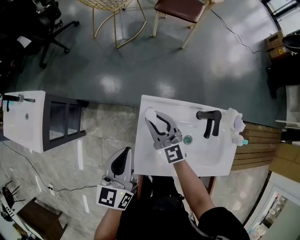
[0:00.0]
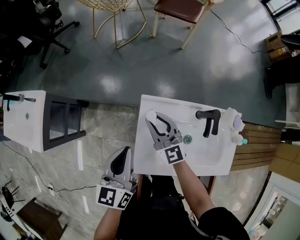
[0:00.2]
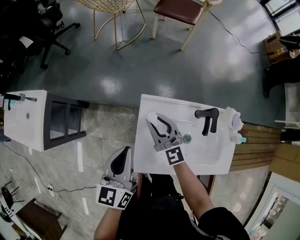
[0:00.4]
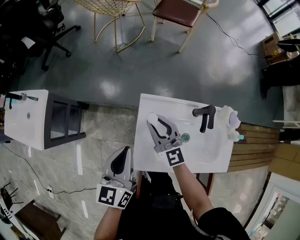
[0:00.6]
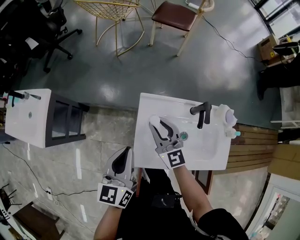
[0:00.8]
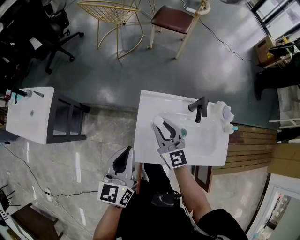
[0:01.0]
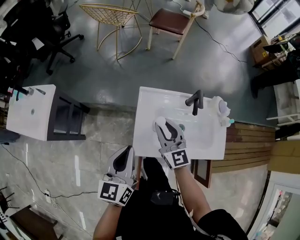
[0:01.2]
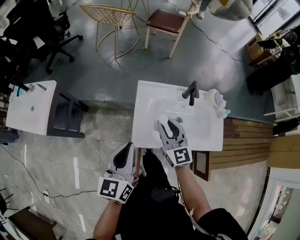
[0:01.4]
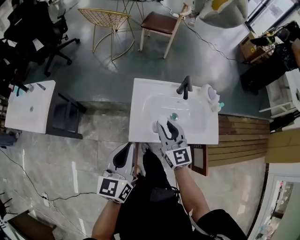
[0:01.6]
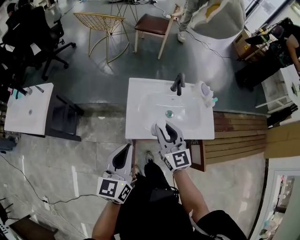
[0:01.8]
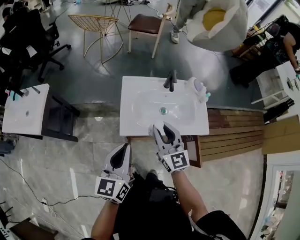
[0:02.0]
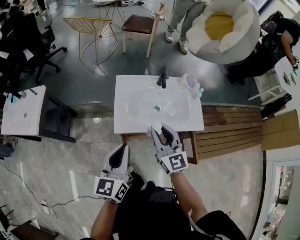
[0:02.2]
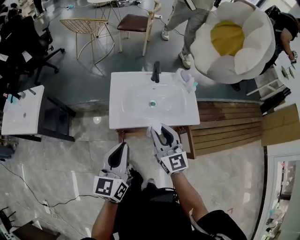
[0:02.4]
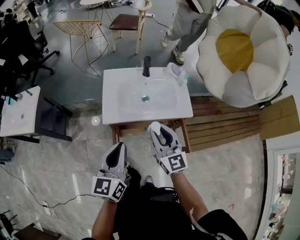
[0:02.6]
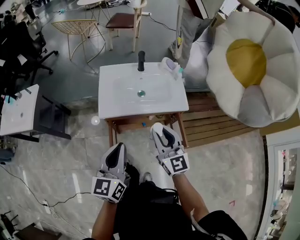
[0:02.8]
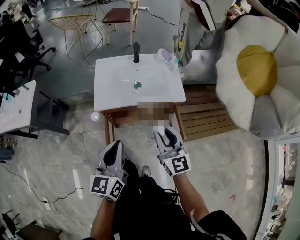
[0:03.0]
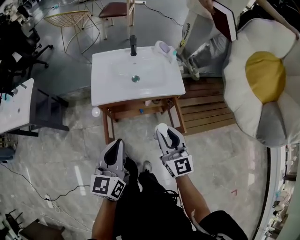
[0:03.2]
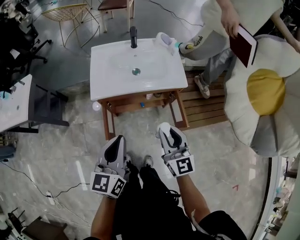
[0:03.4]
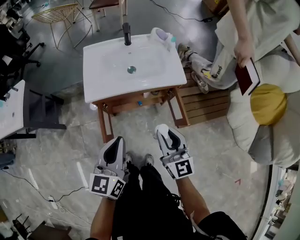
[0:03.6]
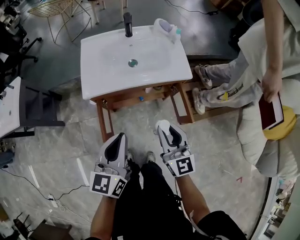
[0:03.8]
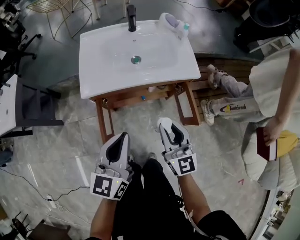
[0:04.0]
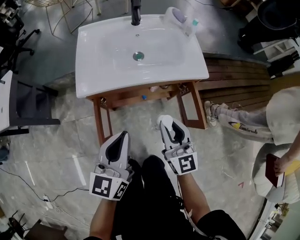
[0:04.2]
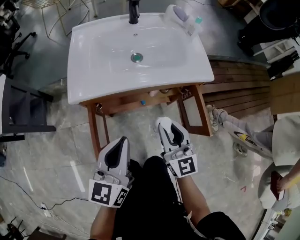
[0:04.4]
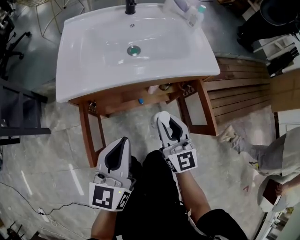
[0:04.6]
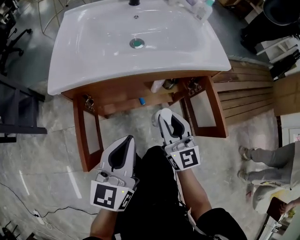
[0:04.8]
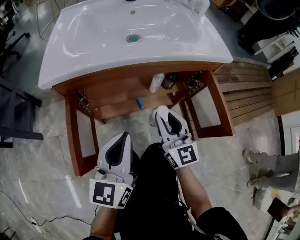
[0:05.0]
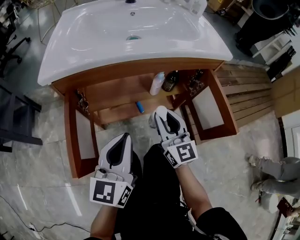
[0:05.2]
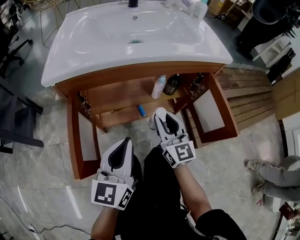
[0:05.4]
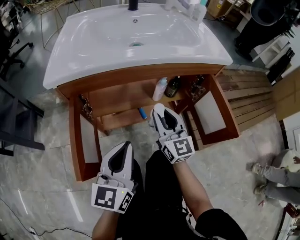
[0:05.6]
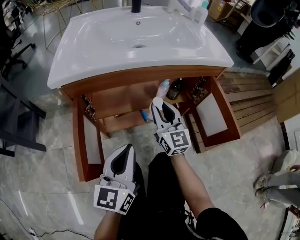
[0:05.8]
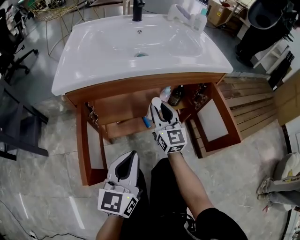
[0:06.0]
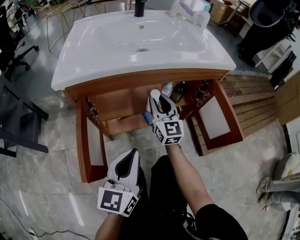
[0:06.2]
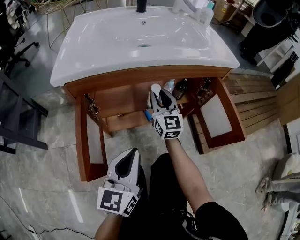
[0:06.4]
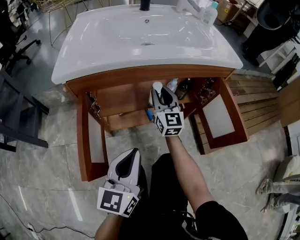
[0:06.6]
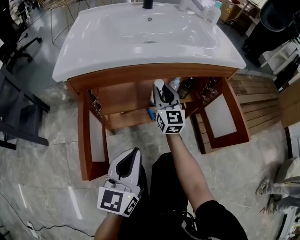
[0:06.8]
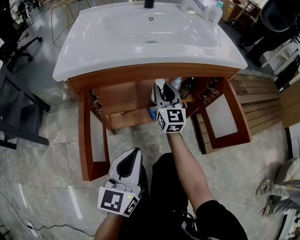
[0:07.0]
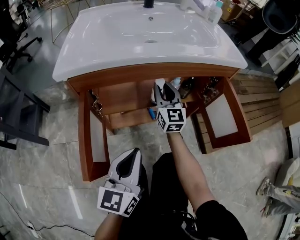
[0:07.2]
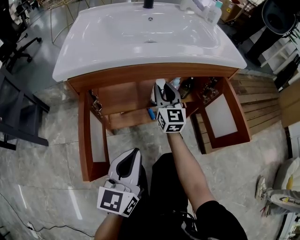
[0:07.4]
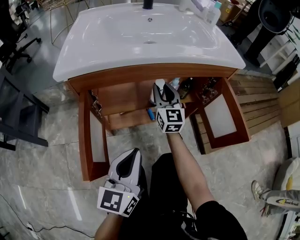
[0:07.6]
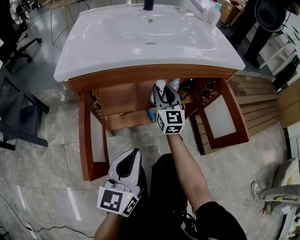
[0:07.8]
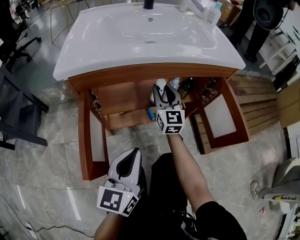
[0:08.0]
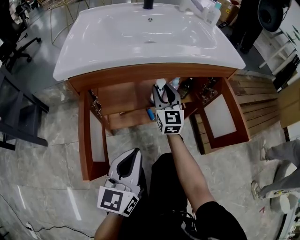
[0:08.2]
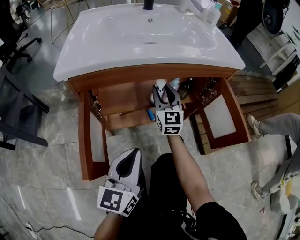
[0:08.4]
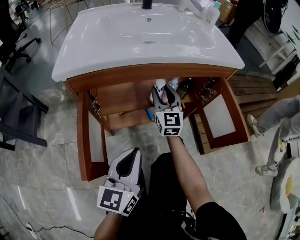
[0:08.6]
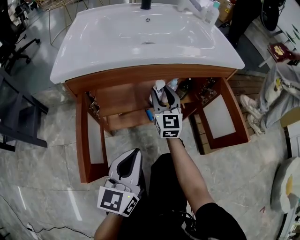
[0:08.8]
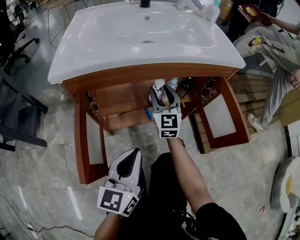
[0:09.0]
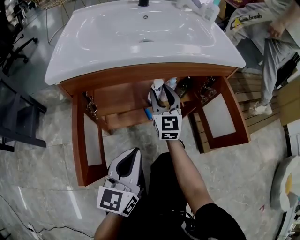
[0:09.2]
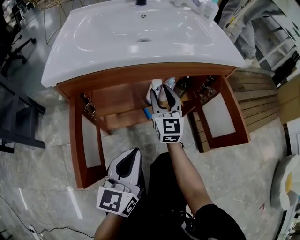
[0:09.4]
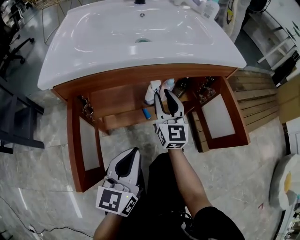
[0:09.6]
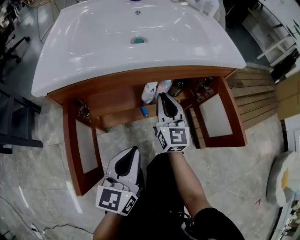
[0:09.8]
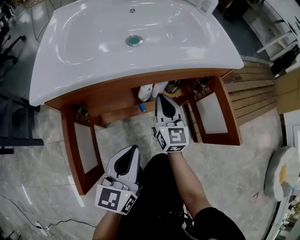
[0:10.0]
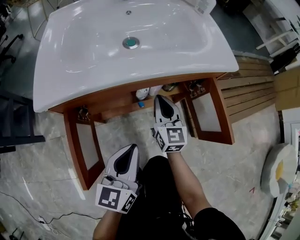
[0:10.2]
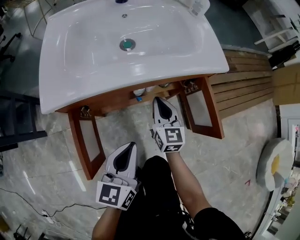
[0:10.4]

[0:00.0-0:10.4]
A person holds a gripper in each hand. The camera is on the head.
0:00.0 to 0:01.4: Both grippers travel together backward and upward, approximately 20 cm.
0:01.4 to 0:03.0: Both grippers move backward and to the right, about 35 cm.
0:03.0 to 0:04.4: The two grippers go about 25 cm downward.
0:04.4 to 0:06.0: The left gripper moves downward, roughly 20 cm. Meanwhile the right gripper shifts roughly 25 cm downward and forward.
0:06.0 to 0:07.4: The right gripper shifts about 5 cm forward.
0:07.4 to 0:09.0: The grippers make only small movements.
0:09.0 to 0:10.4: The right gripper travels to the right and backward by approximately 10 cm, changes its angle by approximately 20 degrees, and closes up. The left gripper travels upward by about 10 cm.

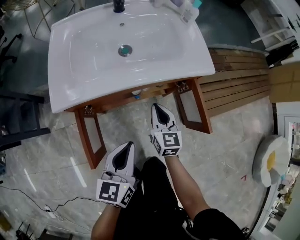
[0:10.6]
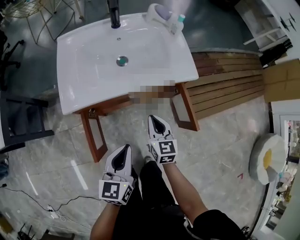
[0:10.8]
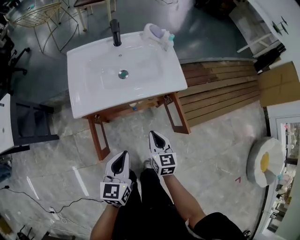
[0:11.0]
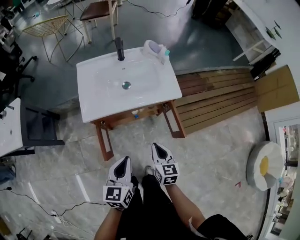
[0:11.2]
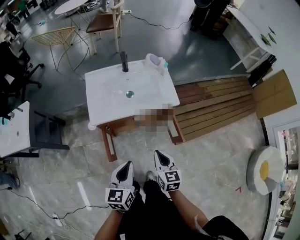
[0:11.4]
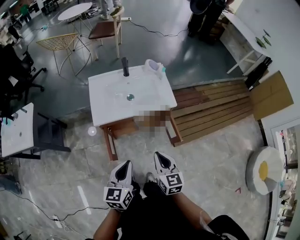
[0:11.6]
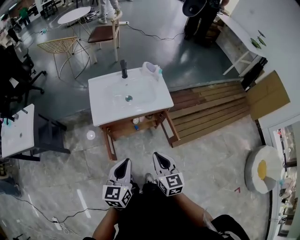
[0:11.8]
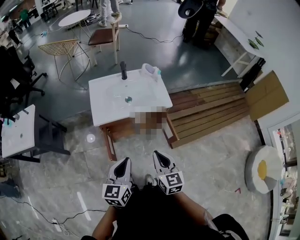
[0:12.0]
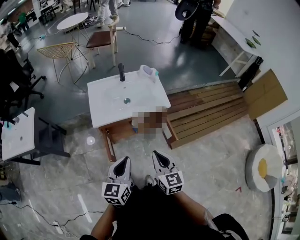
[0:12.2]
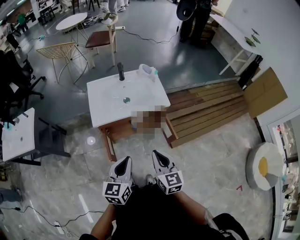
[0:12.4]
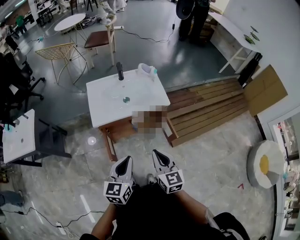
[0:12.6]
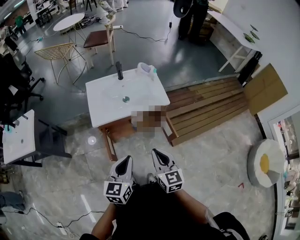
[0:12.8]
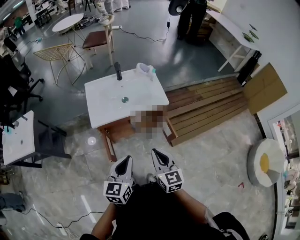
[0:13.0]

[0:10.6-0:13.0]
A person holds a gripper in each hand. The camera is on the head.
0:10.6 to 0:11.8: Both grippers travel together upward and backward, some 40 cm.
0:11.8 to 0:13.0: The grippers stay close to where they were, moving slightly.

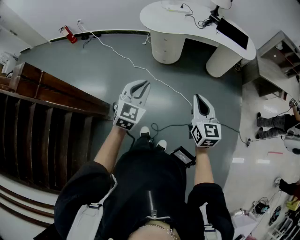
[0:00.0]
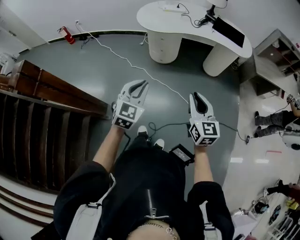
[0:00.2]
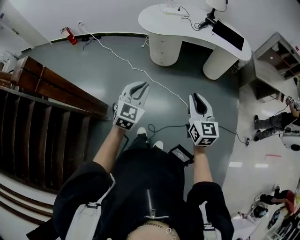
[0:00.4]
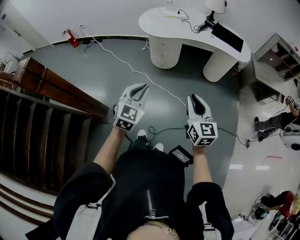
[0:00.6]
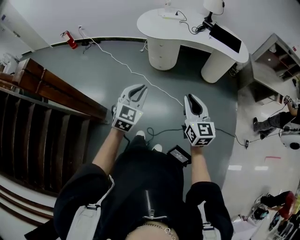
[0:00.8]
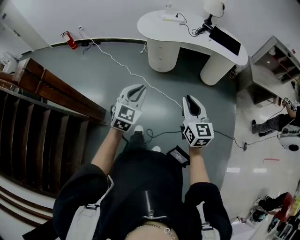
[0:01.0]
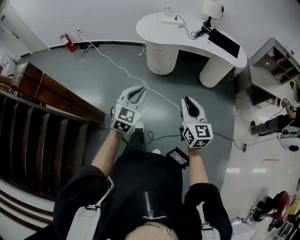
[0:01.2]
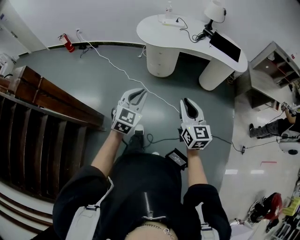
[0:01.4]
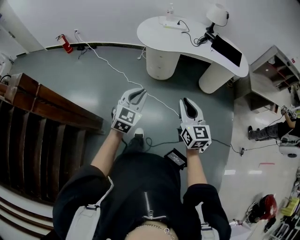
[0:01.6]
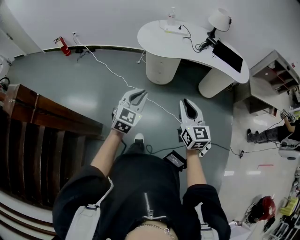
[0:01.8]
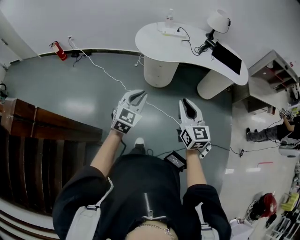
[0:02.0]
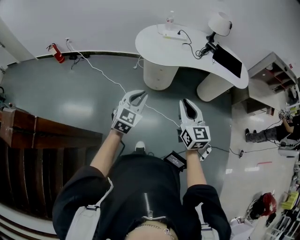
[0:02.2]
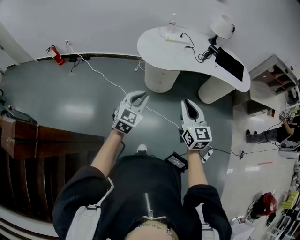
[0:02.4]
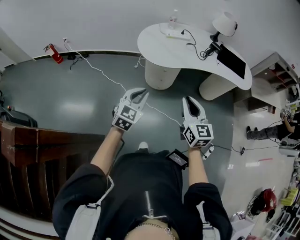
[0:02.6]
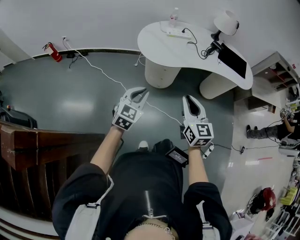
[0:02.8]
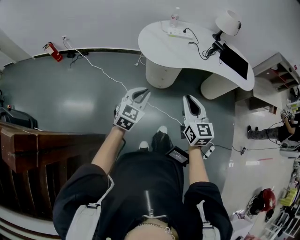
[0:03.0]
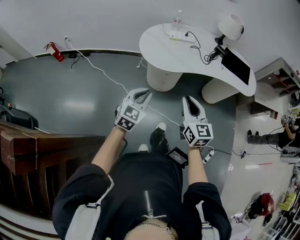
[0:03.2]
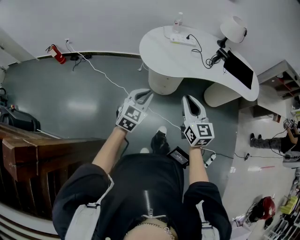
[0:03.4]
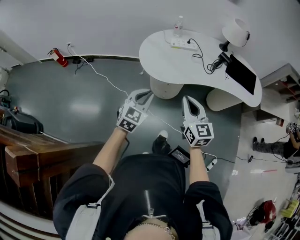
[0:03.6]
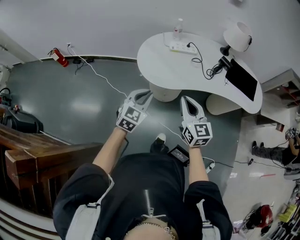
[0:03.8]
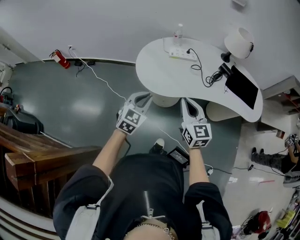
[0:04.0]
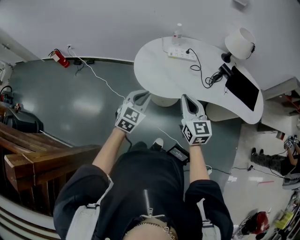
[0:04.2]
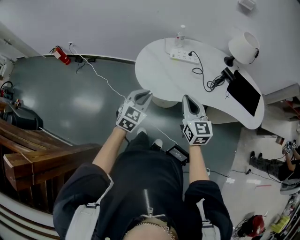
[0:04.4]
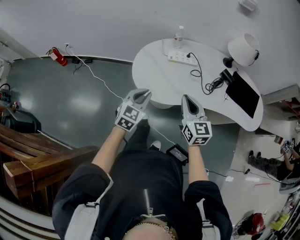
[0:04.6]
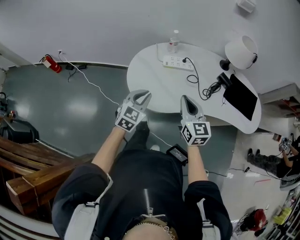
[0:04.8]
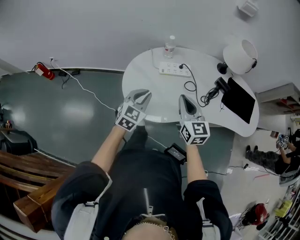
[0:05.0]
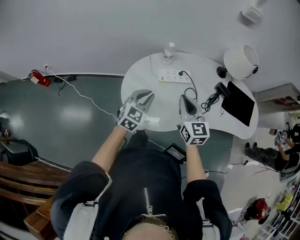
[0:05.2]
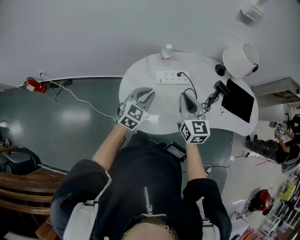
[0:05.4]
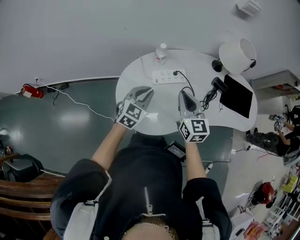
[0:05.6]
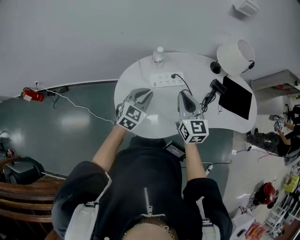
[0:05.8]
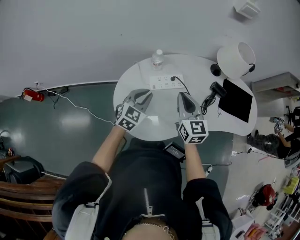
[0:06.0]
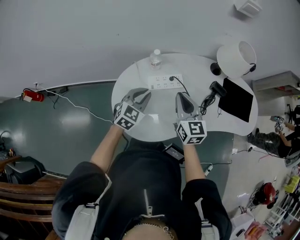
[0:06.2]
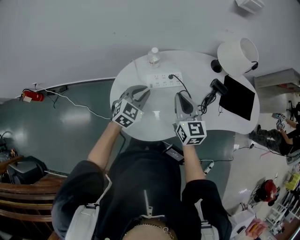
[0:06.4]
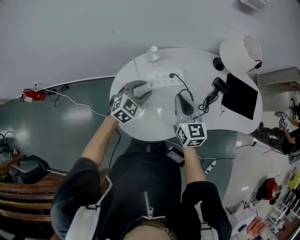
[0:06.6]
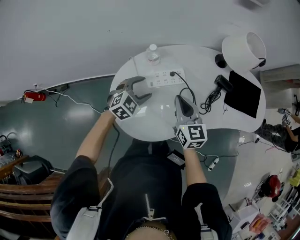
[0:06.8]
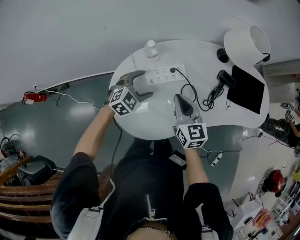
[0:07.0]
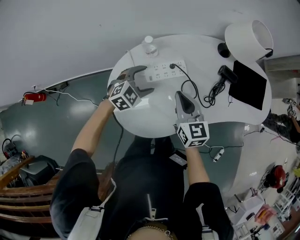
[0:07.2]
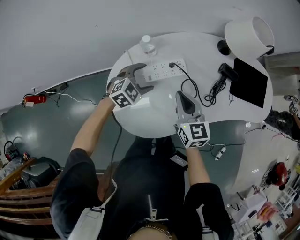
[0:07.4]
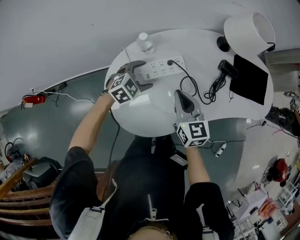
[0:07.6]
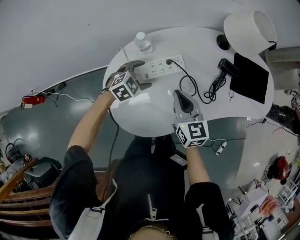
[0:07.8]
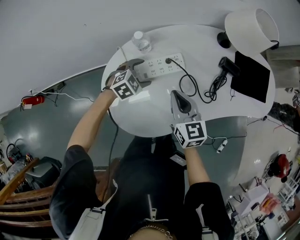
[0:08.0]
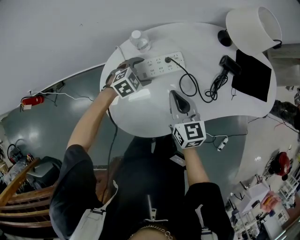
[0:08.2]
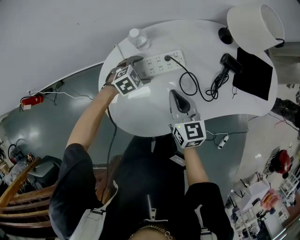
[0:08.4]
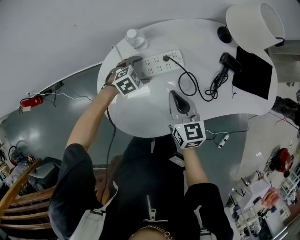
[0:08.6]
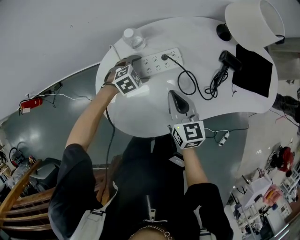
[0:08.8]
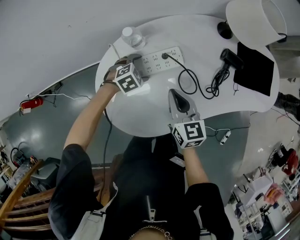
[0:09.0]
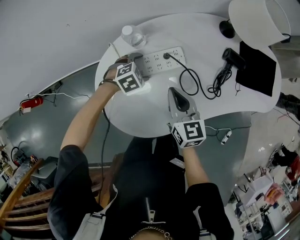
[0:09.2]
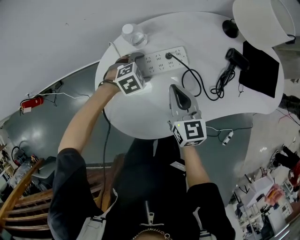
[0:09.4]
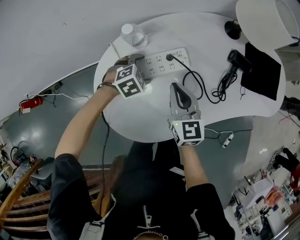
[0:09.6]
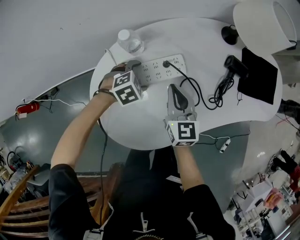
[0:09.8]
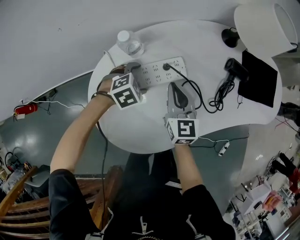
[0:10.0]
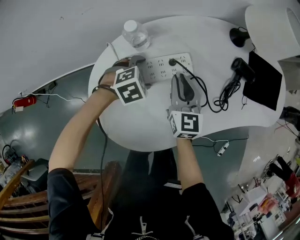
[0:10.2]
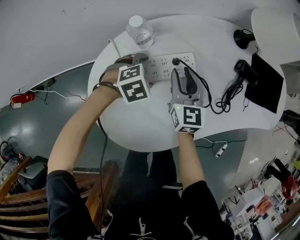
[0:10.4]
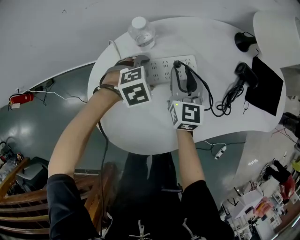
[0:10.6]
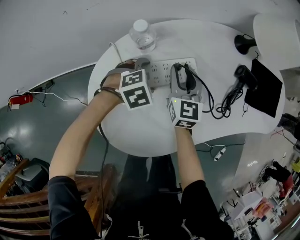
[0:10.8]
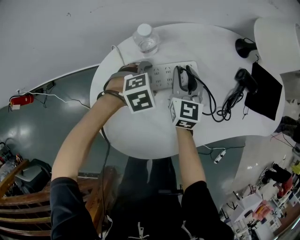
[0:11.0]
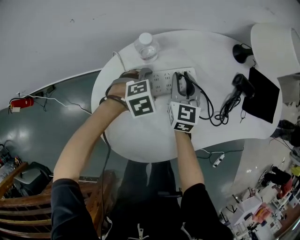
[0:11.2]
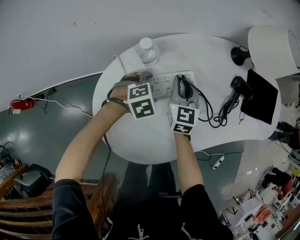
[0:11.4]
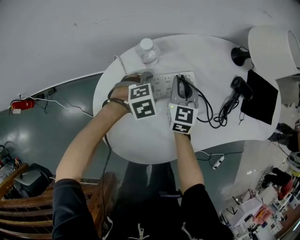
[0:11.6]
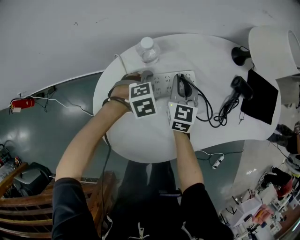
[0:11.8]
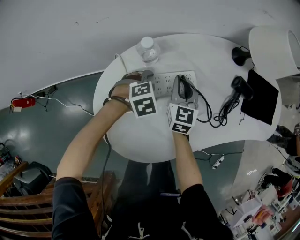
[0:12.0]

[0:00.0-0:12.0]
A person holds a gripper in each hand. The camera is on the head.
0:00.0 to 0:01.6: The two grippers go some 5 cm forward.
0:01.6 to 0:03.0: The grippers both shift forward and to the left by about 25 cm.
0:03.0 to 0:04.4: Both grippers move forward, some 25 cm.
0:04.4 to 0:06.0: The two grippers go some 30 cm forward.
0:06.0 to 0:07.6: The right gripper heads downward, covering roughly 10 cm, while the left gripper is displaced downward and forward by some 15 cm, changes its angle by roughly 40 degrees, and opens up.
0:07.6 to 0:09.0: The right gripper goes about 5 cm downward. The left gripper shifts roughly 10 cm downward.
0:09.0 to 0:10.4: The right gripper travels forward and downward by about 10 cm, and opens.
0:10.4 to 0:12.0: There are only small adjustments of the grippers.
